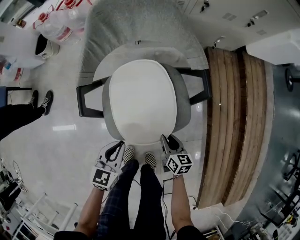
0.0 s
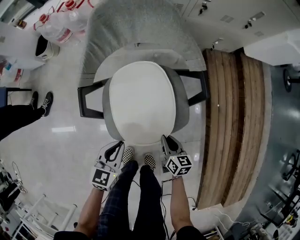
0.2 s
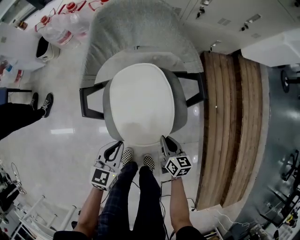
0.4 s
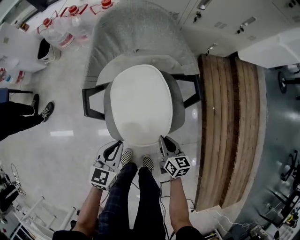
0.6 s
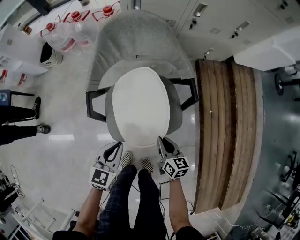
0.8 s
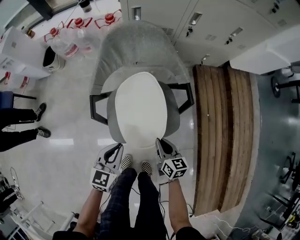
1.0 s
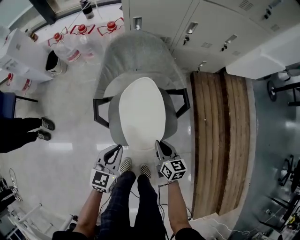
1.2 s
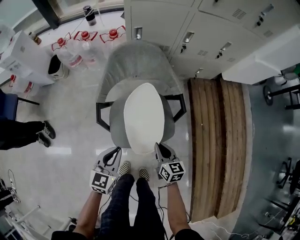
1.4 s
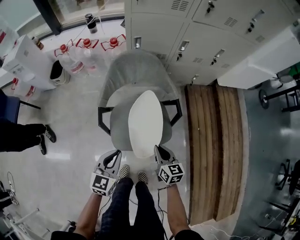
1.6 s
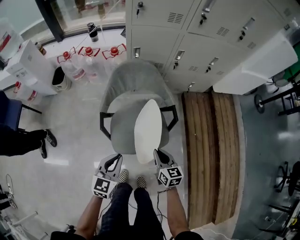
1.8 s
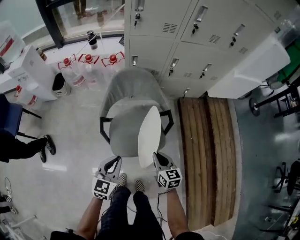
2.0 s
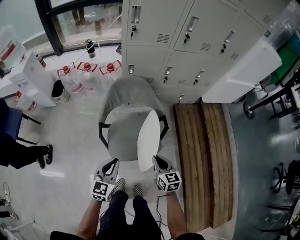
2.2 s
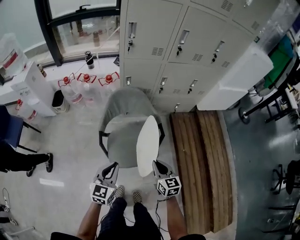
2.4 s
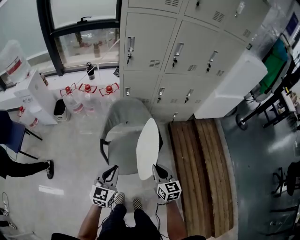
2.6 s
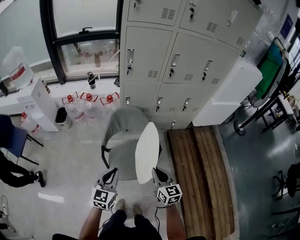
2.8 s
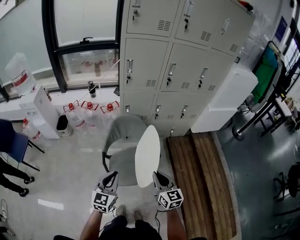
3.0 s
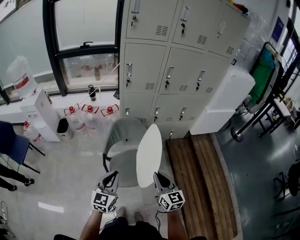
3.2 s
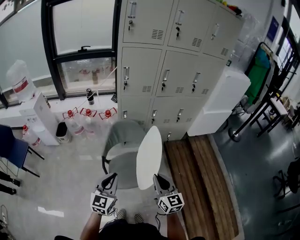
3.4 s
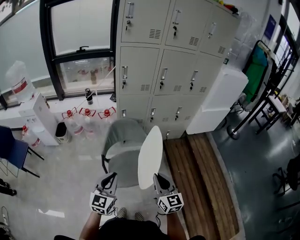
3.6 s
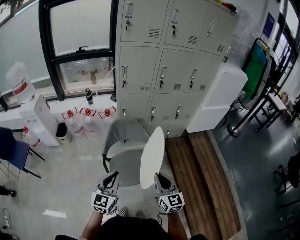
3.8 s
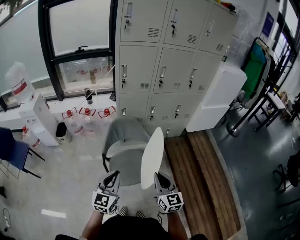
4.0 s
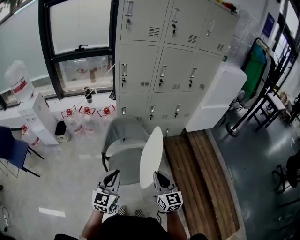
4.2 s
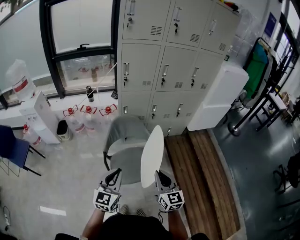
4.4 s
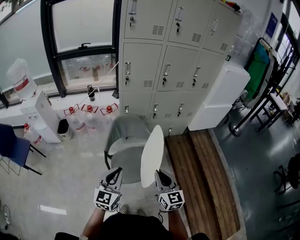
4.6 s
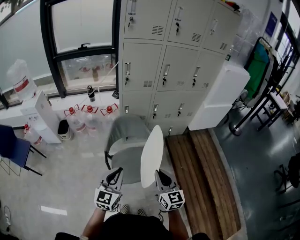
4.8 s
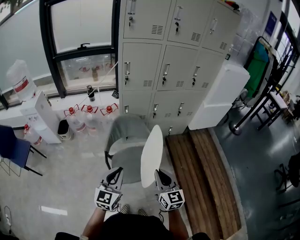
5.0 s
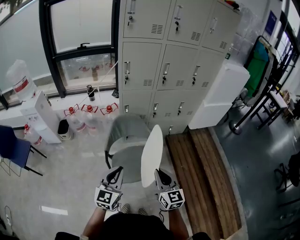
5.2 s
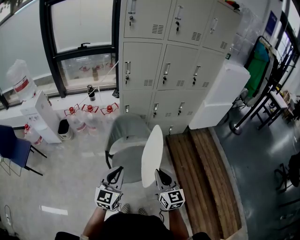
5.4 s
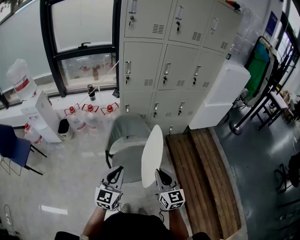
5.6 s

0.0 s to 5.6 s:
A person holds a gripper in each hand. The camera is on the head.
0.0 to 1.4 s: Both grippers move upward, about 20 cm. The right gripper closes.
1.4 to 2.8 s: Both grippers travel together upward, about 30 cm.
2.8 to 4.2 s: The two grippers go some 10 cm upward and backward.
4.2 to 5.6 s: Both grippers stay about where they are.

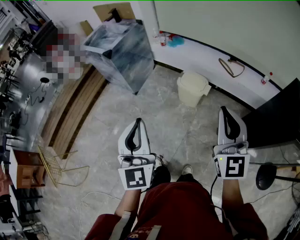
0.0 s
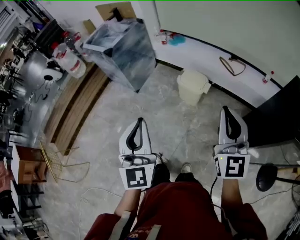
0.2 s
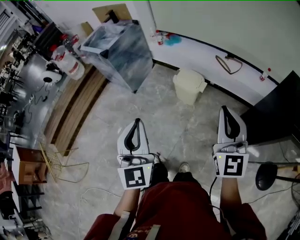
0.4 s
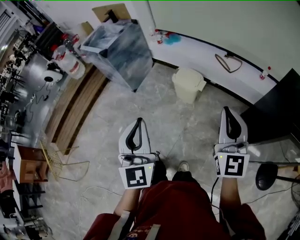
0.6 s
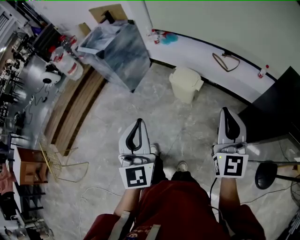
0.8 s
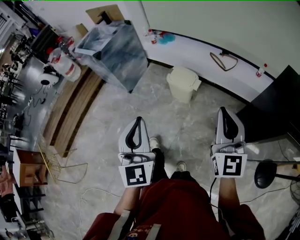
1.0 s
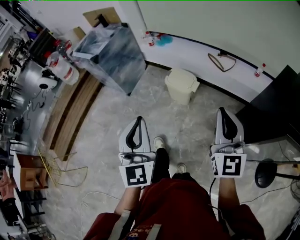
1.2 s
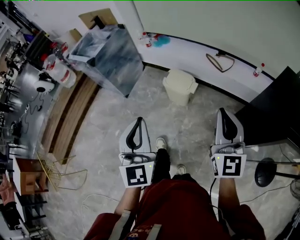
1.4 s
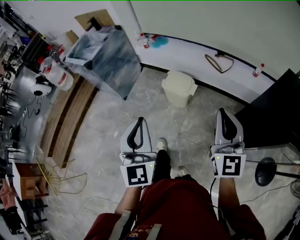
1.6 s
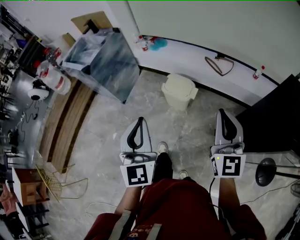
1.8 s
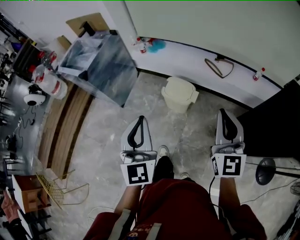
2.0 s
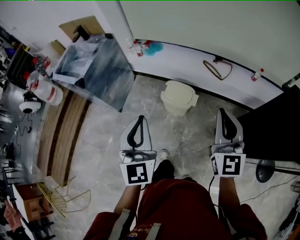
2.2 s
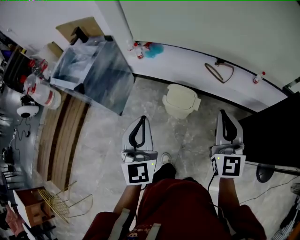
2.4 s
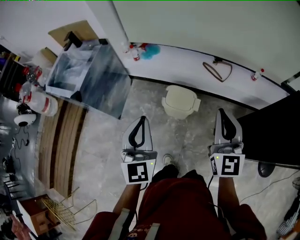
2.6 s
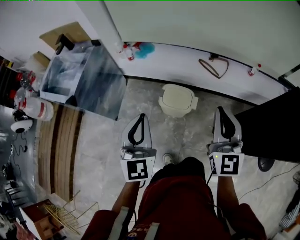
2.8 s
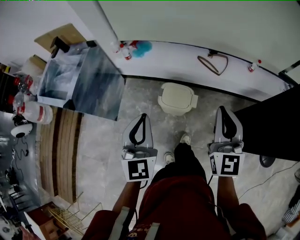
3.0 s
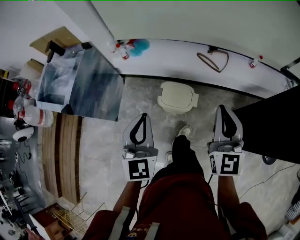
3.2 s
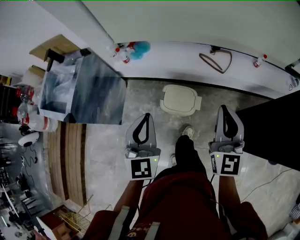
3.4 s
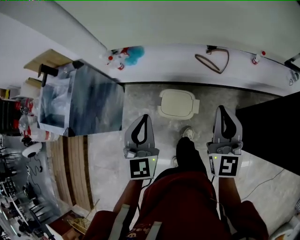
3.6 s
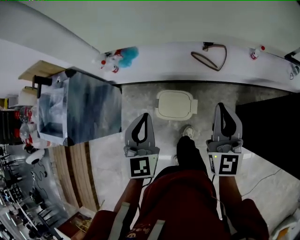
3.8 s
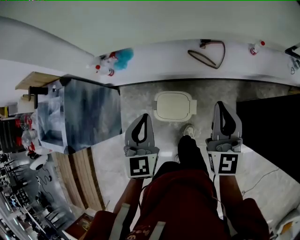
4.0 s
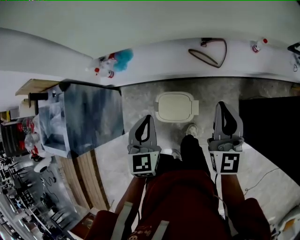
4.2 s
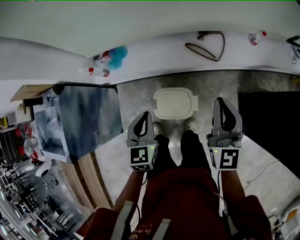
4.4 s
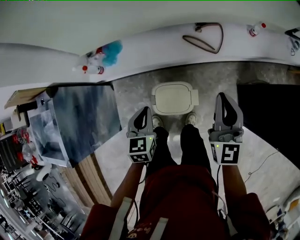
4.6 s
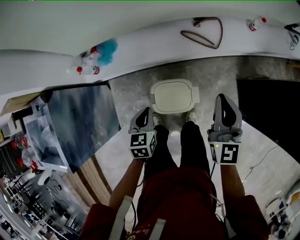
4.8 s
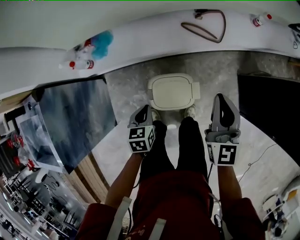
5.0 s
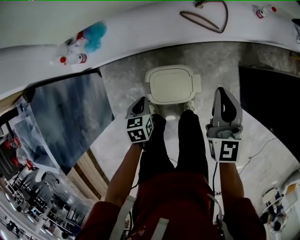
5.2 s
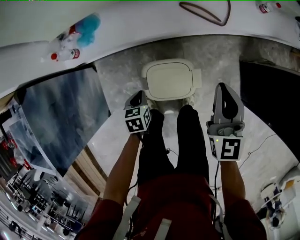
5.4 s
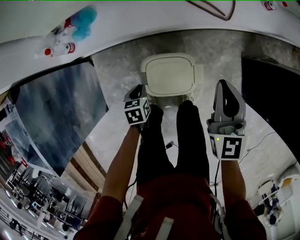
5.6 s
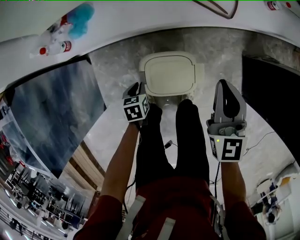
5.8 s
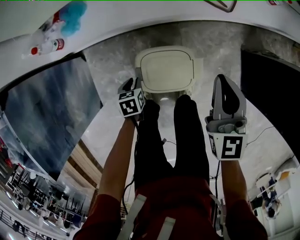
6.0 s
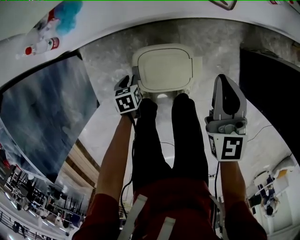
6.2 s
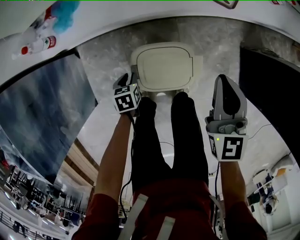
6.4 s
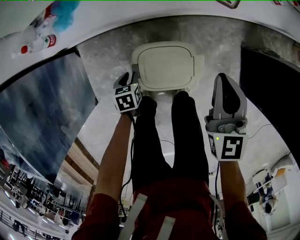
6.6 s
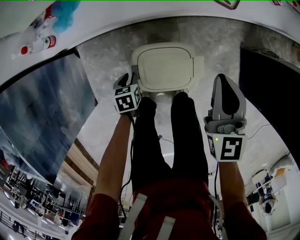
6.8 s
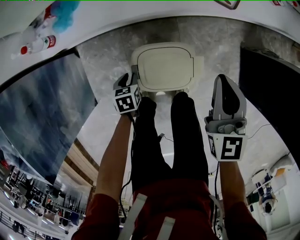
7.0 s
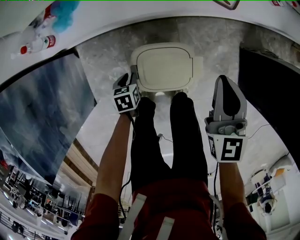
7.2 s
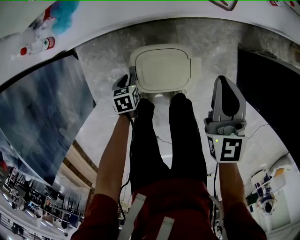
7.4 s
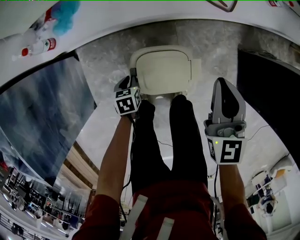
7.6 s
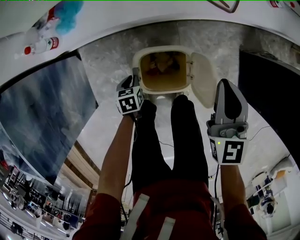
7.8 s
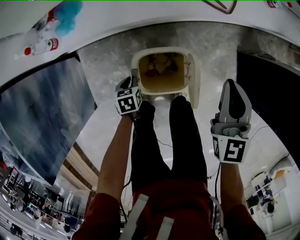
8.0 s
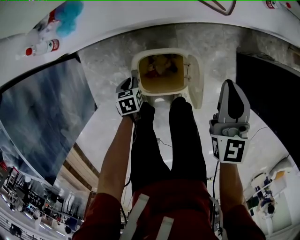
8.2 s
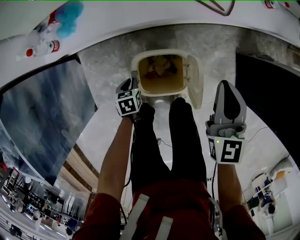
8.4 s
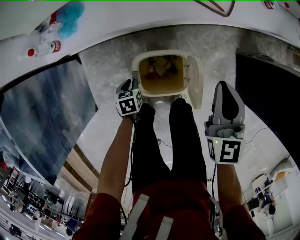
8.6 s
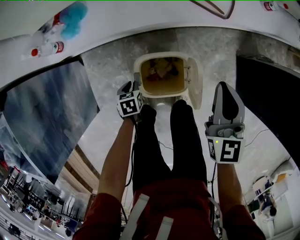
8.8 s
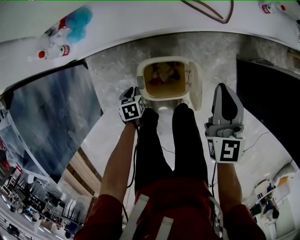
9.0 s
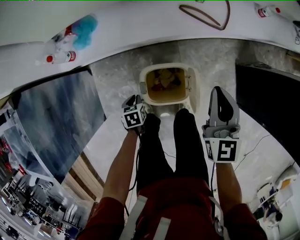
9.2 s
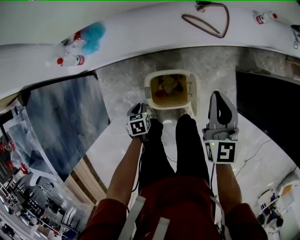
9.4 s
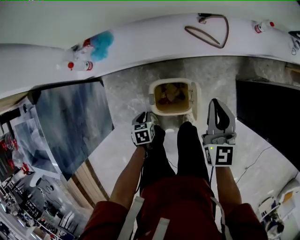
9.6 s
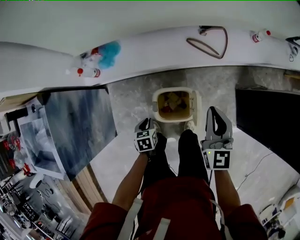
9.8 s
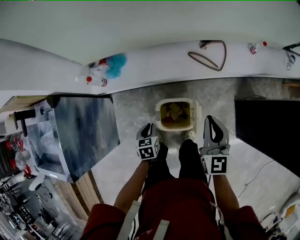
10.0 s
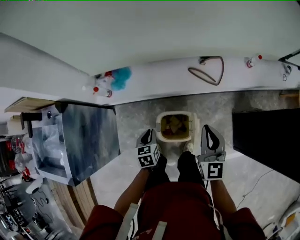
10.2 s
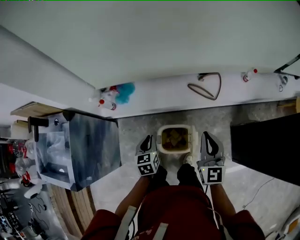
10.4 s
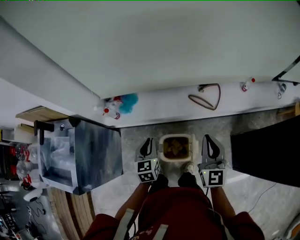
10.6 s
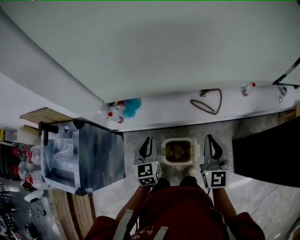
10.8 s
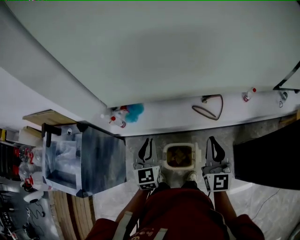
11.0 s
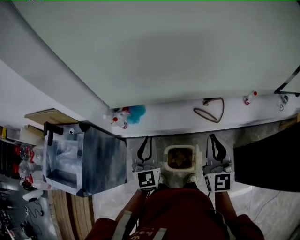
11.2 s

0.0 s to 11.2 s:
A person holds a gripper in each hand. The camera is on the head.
0.0 to 1.6 s: The left gripper shifts about 15 cm to the right and forward, while the right gripper heads to the right, covering approximately 15 cm.
1.6 to 3.2 s: The left gripper goes about 30 cm forward, and rotates approximately 20 degrees; the right gripper travels forward and to the left by about 25 cm.
3.2 to 4.8 s: The left gripper is displaced downward and forward by approximately 40 cm, and tips its fingers downward by about 40 degrees, while the right gripper travels forward and downward by some 25 cm.
4.8 to 6.4 s: The right gripper shifts about 20 cm downward. The left gripper is displaced downward by roughly 30 cm, swivels about 30 degrees, and opens up.
6.4 to 8.0 s: The grippers make only small movements.
8.0 to 9.6 s: The two grippers go some 10 cm upward.
9.6 to 11.2 s: The left gripper is displaced upward by approximately 50 cm, and points its fingers approximately 60 degrees further upward. The right gripper travels upward by some 25 cm, and rotates about 20 degrees.

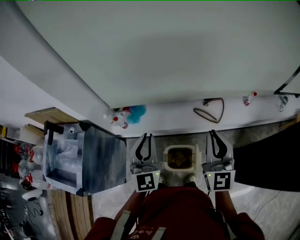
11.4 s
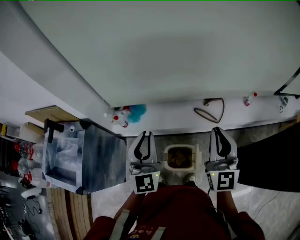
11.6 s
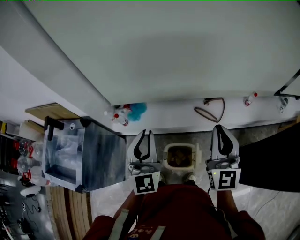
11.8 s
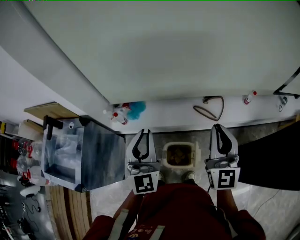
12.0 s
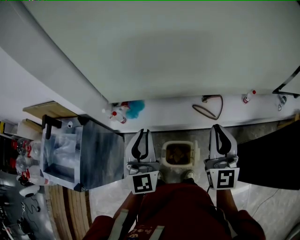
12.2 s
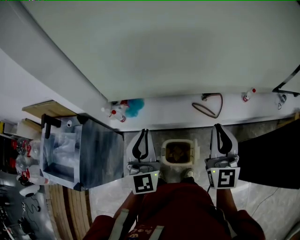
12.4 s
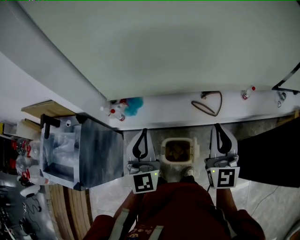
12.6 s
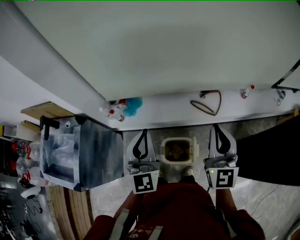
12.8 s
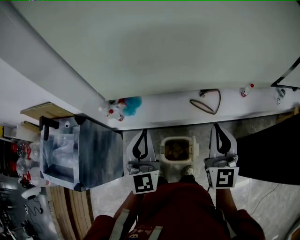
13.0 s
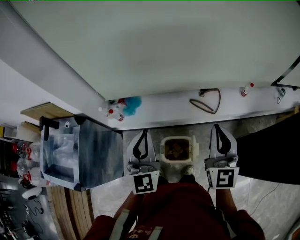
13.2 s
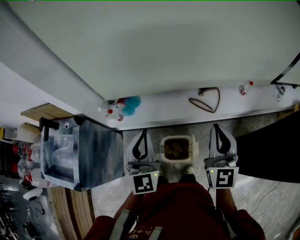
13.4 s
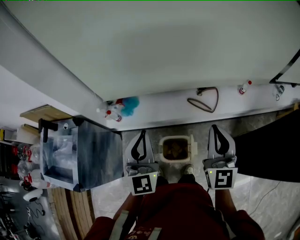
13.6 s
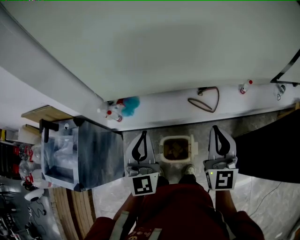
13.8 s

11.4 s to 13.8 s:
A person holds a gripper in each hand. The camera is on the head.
11.4 to 13.8 s: The grippers make only small movements.

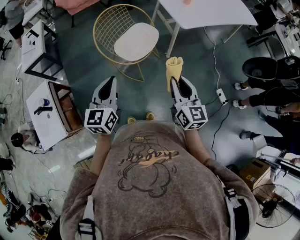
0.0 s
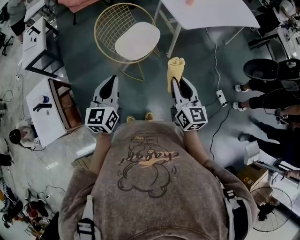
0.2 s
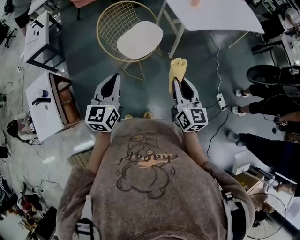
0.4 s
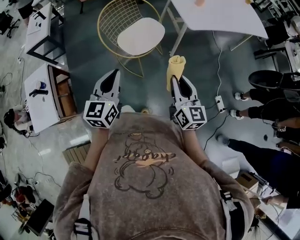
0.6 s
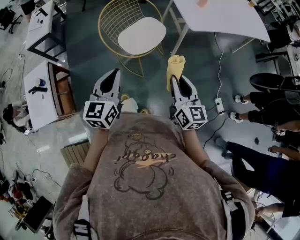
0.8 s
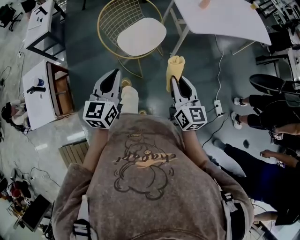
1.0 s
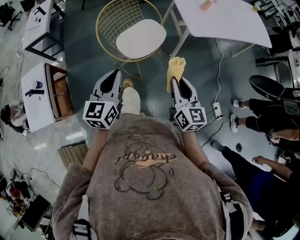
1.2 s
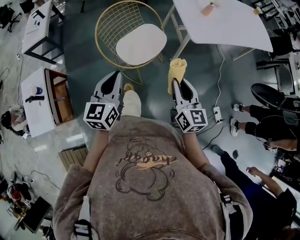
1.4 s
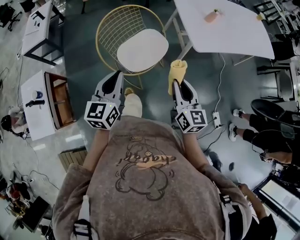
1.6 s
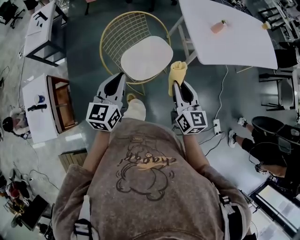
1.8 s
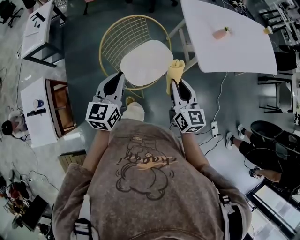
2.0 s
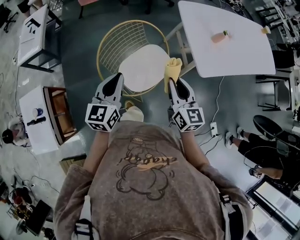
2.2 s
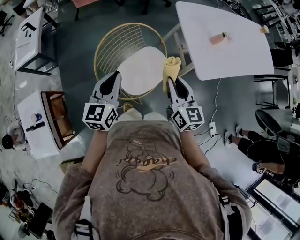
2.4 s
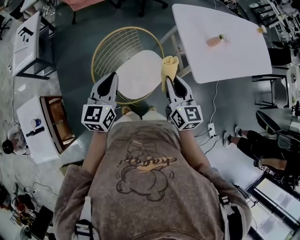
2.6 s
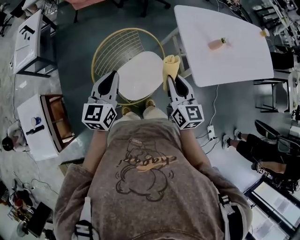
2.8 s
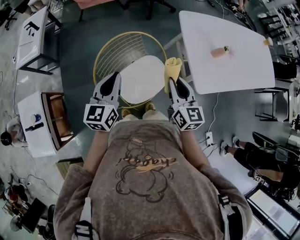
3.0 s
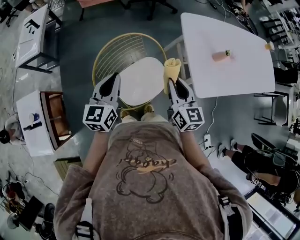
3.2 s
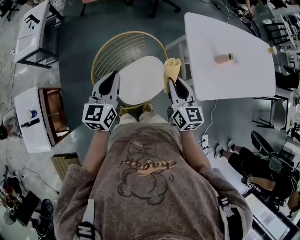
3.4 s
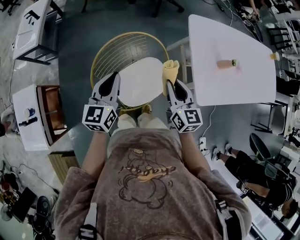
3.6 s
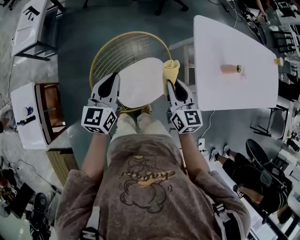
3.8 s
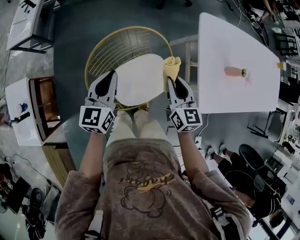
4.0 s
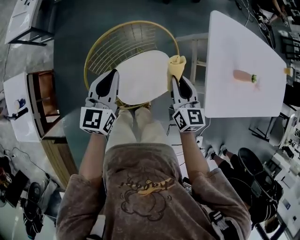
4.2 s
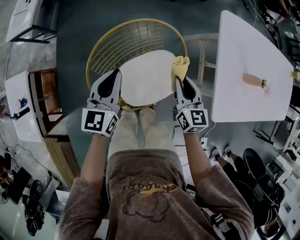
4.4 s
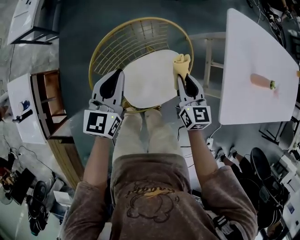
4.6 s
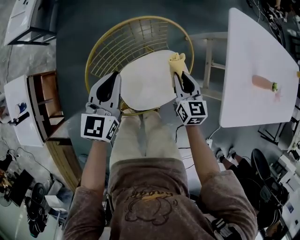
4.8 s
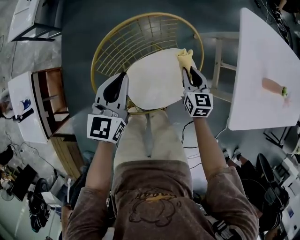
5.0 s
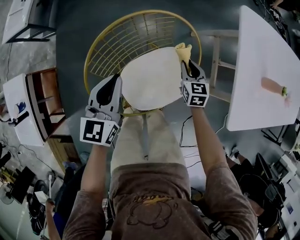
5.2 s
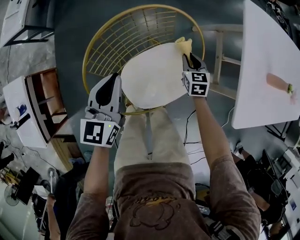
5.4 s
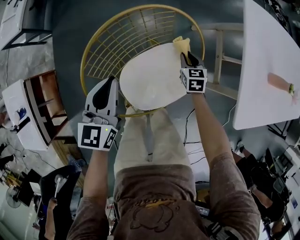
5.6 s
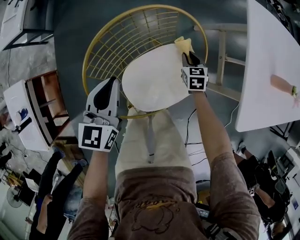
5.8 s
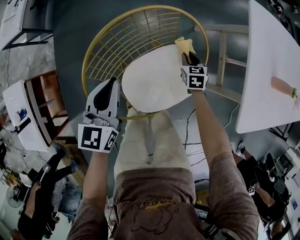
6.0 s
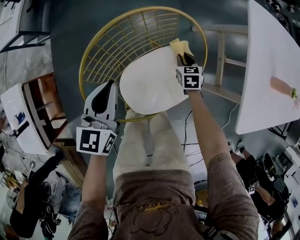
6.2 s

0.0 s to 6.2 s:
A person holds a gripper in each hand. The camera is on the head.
0.0 to 1.6 s: The two grippers go about 15 cm forward.
1.6 to 3.2 s: Both grippers move forward, some 25 cm.
3.2 to 4.6 s: Both grippers travel together downward and forward, some 20 cm.
4.6 to 6.2 s: The left gripper goes about 10 cm downward. The right gripper is displaced downward by about 25 cm, and angles its fingers downward, by about 30 degrees.
